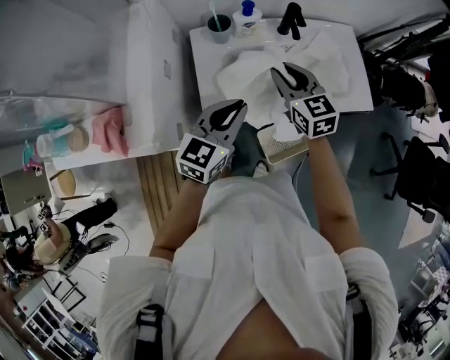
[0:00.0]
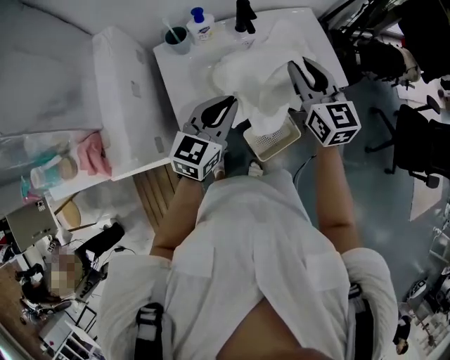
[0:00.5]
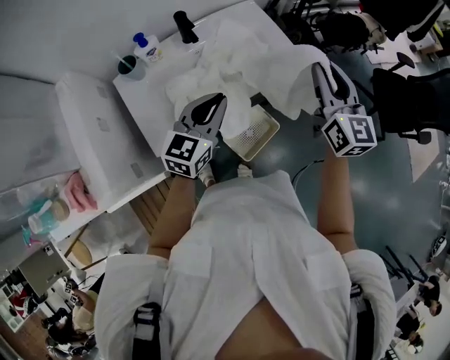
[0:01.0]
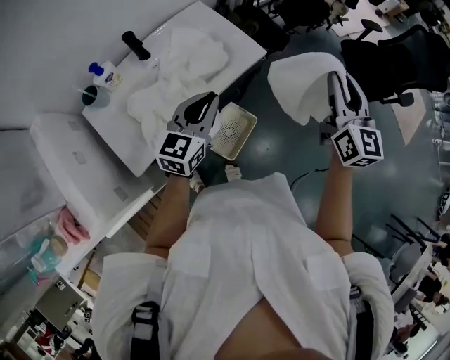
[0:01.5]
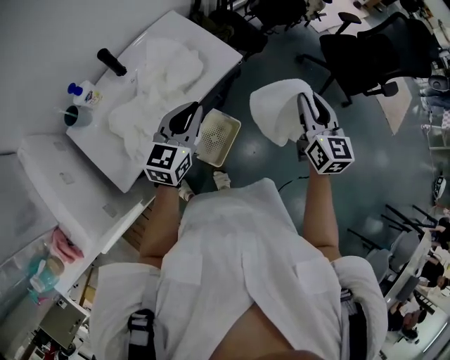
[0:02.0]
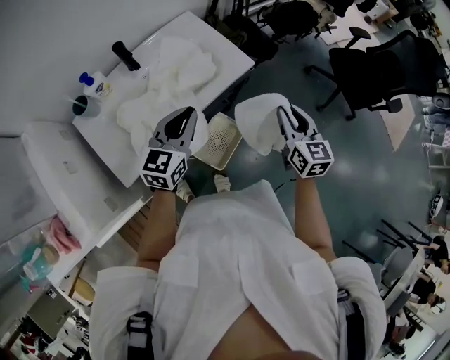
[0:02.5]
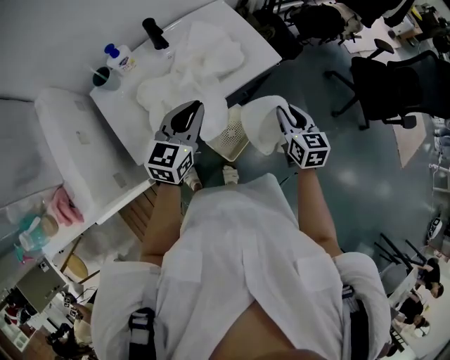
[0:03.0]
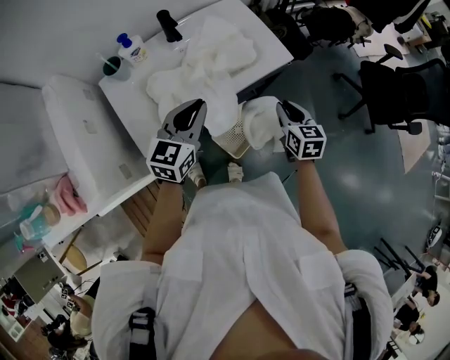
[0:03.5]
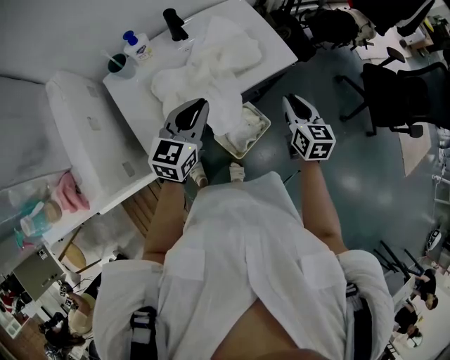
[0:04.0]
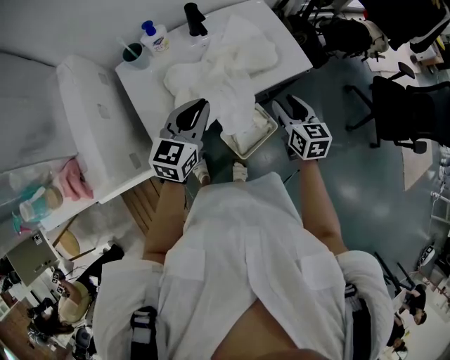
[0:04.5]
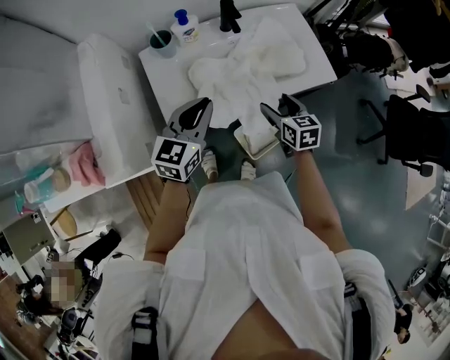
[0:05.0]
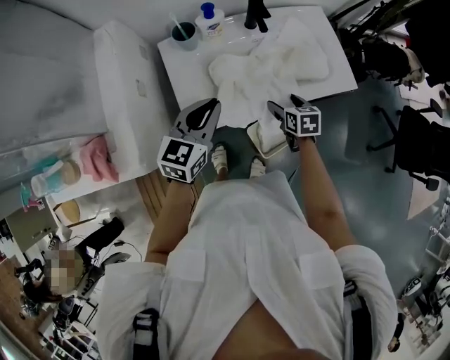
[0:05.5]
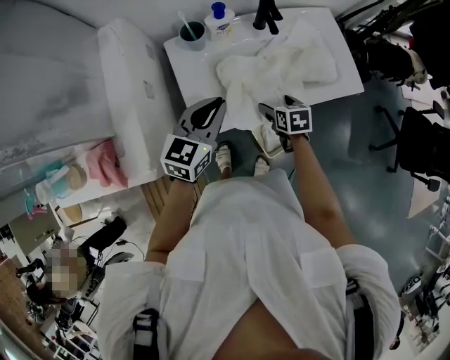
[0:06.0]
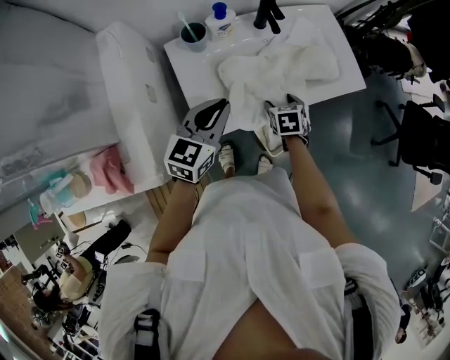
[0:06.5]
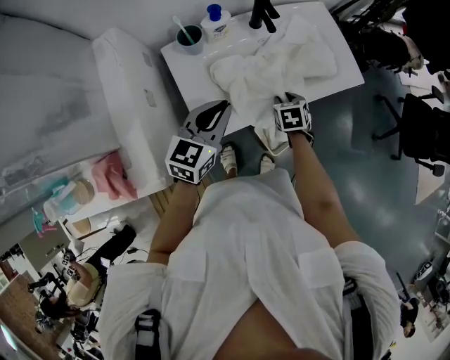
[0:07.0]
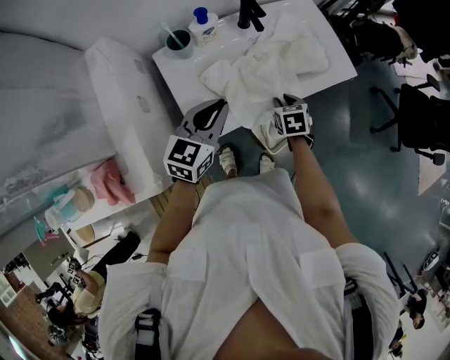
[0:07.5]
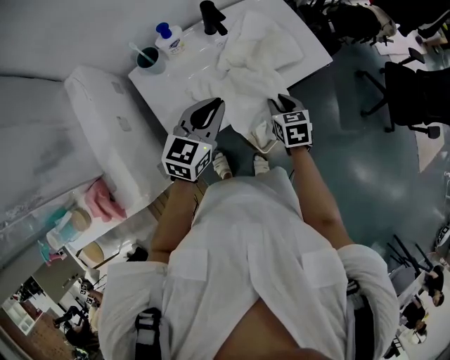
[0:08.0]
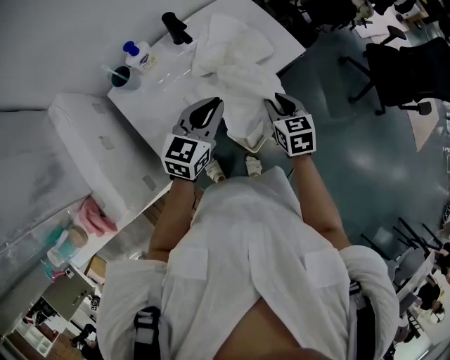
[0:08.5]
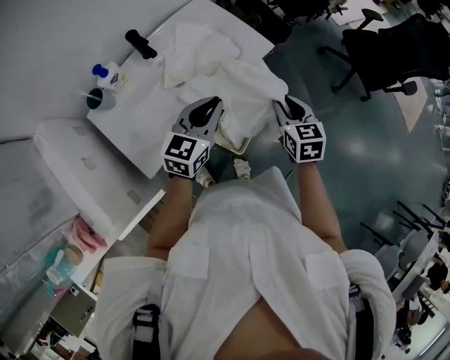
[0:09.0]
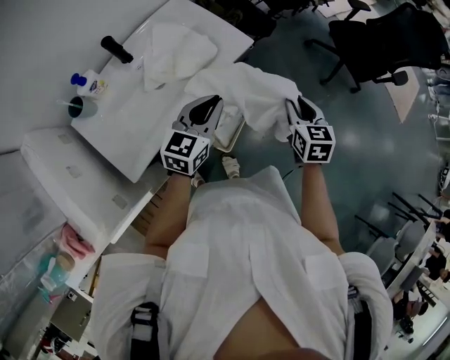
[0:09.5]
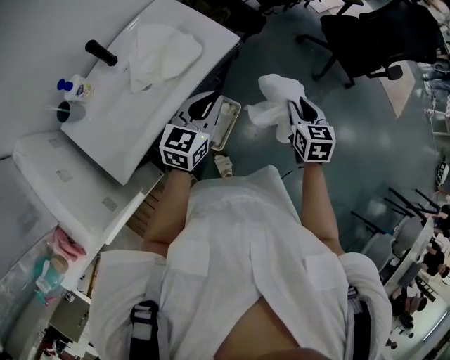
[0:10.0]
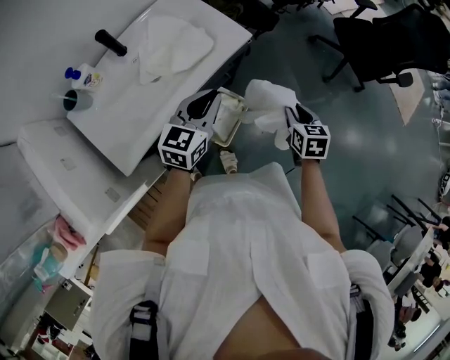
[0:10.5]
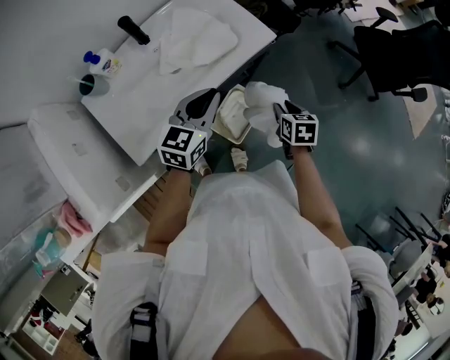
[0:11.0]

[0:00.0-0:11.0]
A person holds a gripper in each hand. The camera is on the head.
0:00.0 to 0:02.0: The right gripper shifts by approximately 50 cm, and turns by about 60 degrees; the left gripper shifts by about 30 cm, and turns by roughly 30 degrees.
0:02.0 to 0:03.5: The right gripper is displaced to the left and downward by roughly 20 cm, and swivels roughly 30 degrees. Meanwhile the left gripper heads to the left and backward, covering approximately 15 cm.
0:03.5 to 0:05.5: The right gripper travels to the left and downward by approximately 25 cm, turns by approximately 20 degrees, and opens its fingers. The left gripper is displaced to the left by some 15 cm.
0:05.5 to 0:07.5: The right gripper closes.
0:07.5 to 0:09.0: The right gripper shifts some 30 cm to the right and upward, and swivels some 30 degrees. The left gripper shifts approximately 25 cm to the right.
0:09.0 to 0:11.0: The left gripper moves roughly 10 cm to the right and comes back; the right gripper heads downward, covering roughly 10 cm, reaches some 15 cm to the right, then returns, and swivels roughly 20 degrees.

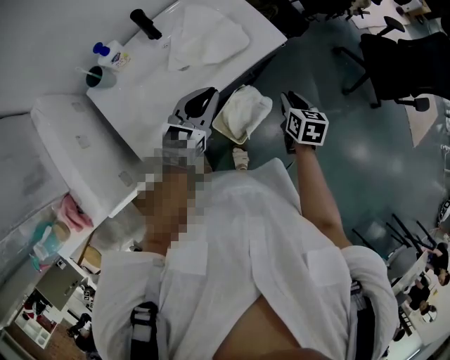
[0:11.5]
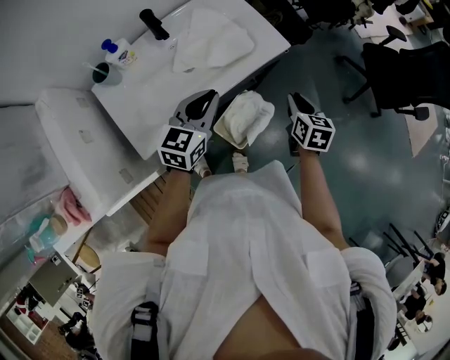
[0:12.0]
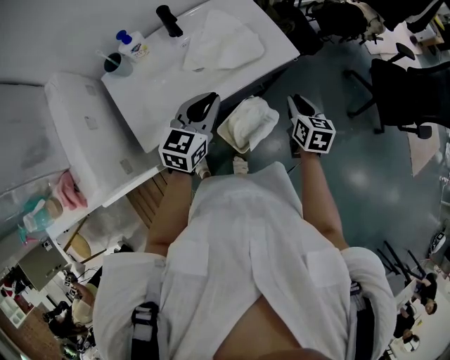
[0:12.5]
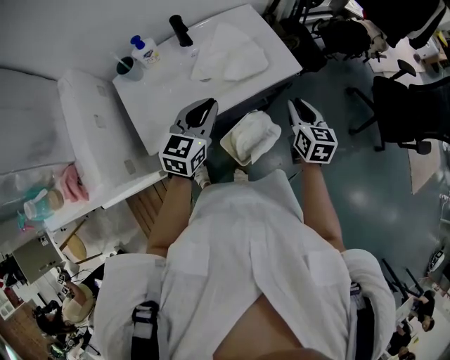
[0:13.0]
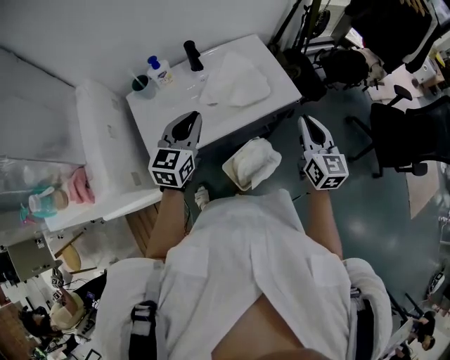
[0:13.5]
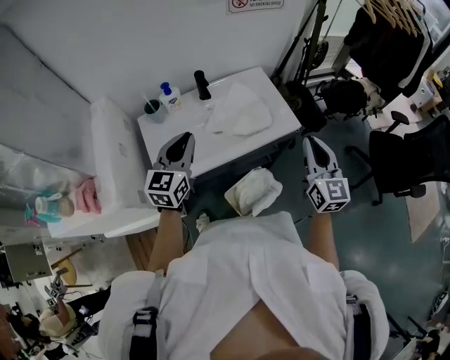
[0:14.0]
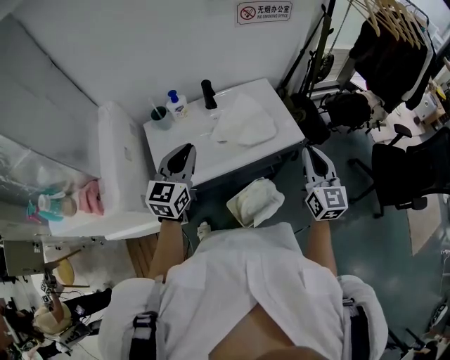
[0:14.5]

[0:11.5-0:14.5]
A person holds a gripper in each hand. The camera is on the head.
0:11.5 to 0:13.0: The left gripper shifts by about 5 cm. Meanwhile the right gripper moves upward, about 10 cm, and rotates approximately 20 degrees.
0:13.0 to 0:14.5: The right gripper heads upward, covering some 15 cm, and changes its angle by roughly 30 degrees, while the left gripper goes about 15 cm to the left and upward.

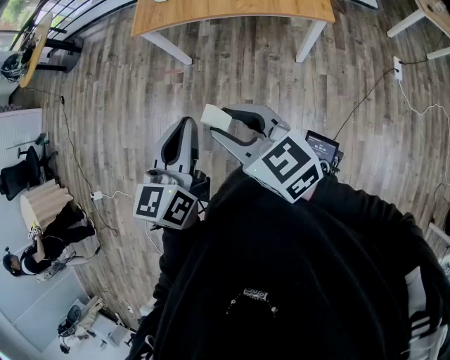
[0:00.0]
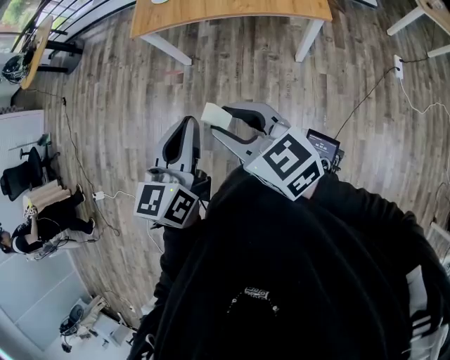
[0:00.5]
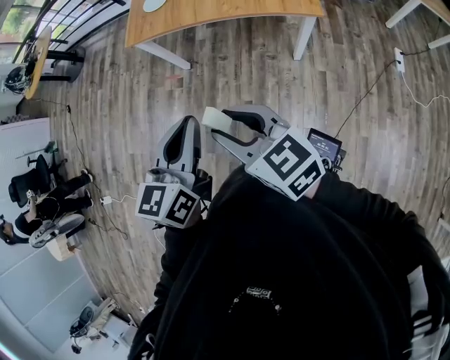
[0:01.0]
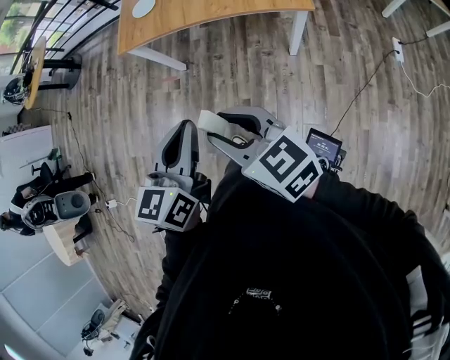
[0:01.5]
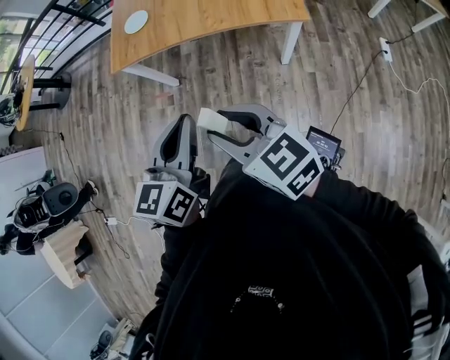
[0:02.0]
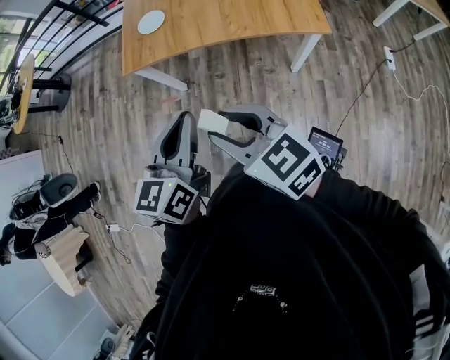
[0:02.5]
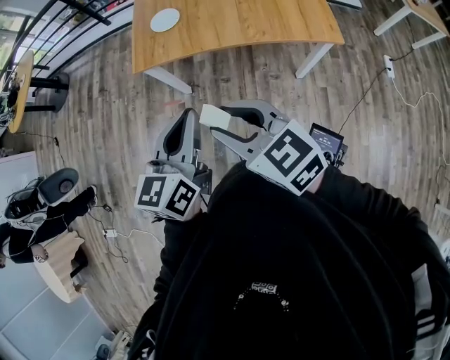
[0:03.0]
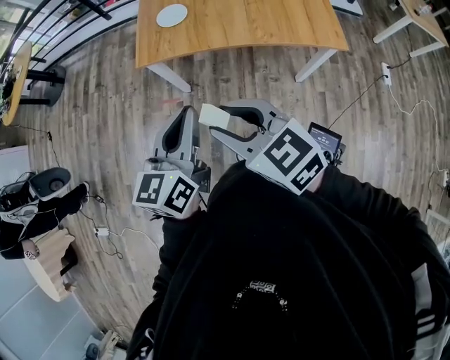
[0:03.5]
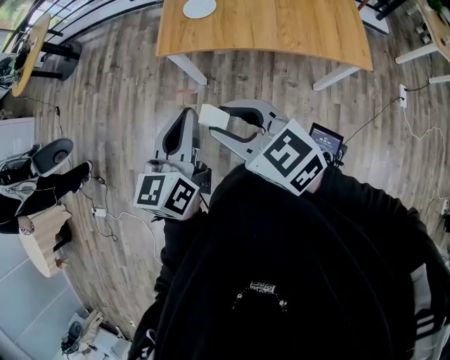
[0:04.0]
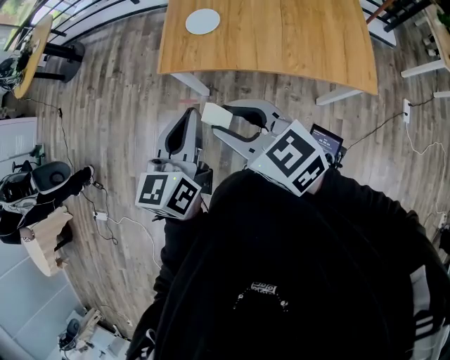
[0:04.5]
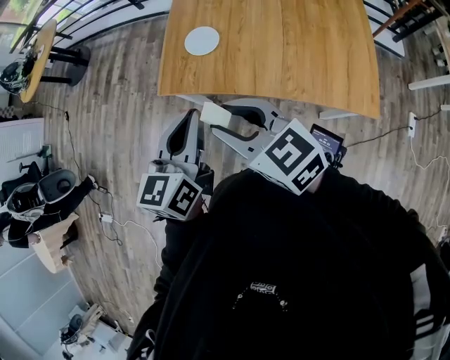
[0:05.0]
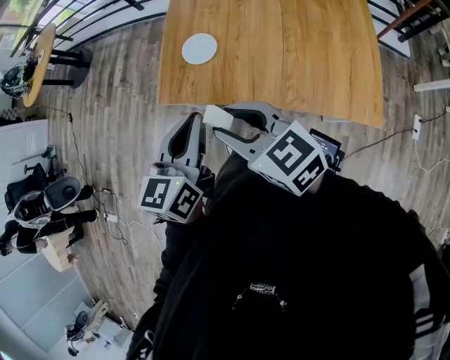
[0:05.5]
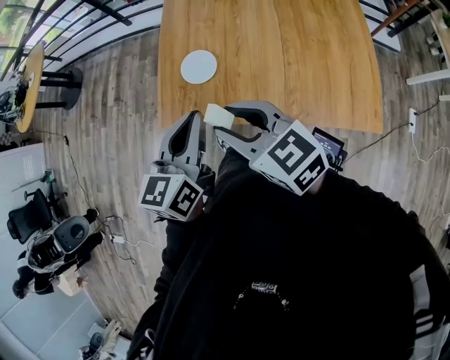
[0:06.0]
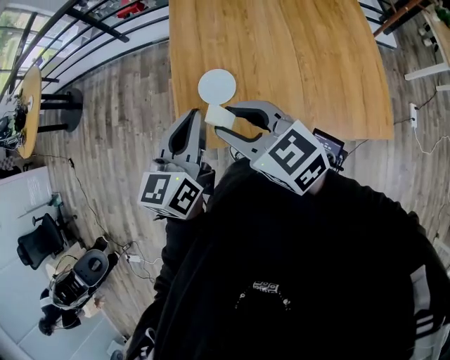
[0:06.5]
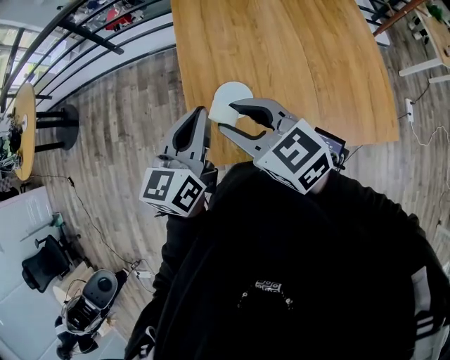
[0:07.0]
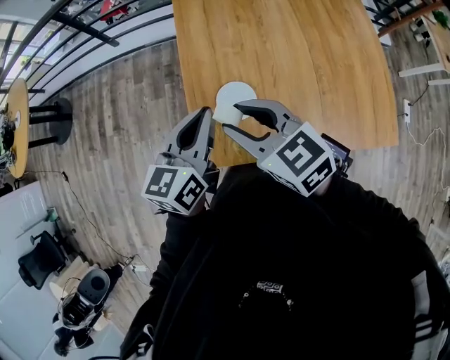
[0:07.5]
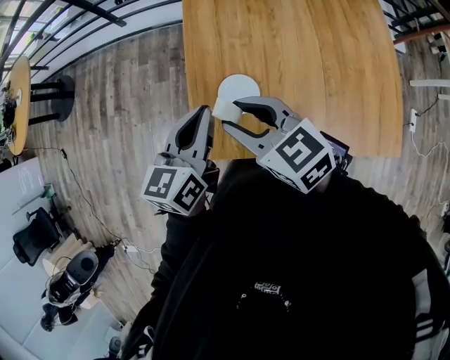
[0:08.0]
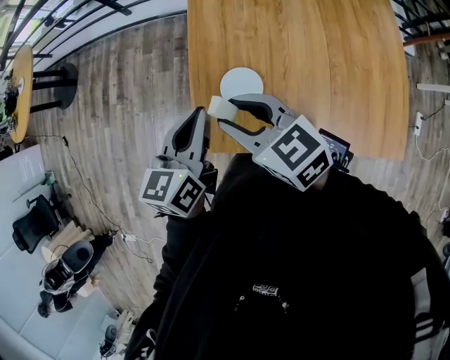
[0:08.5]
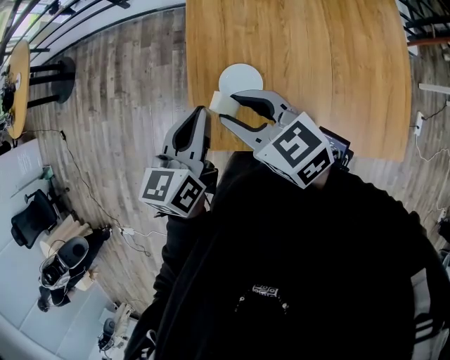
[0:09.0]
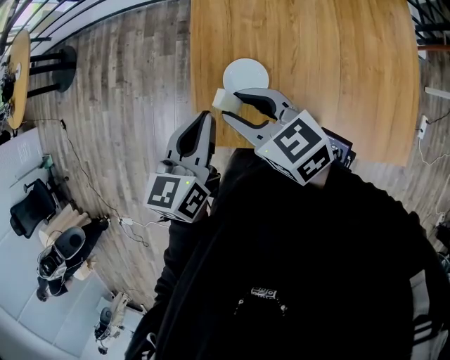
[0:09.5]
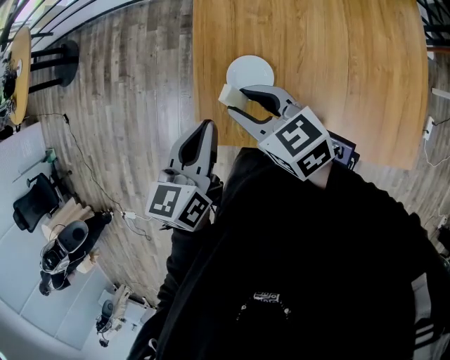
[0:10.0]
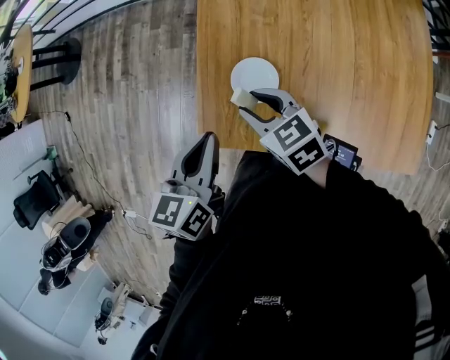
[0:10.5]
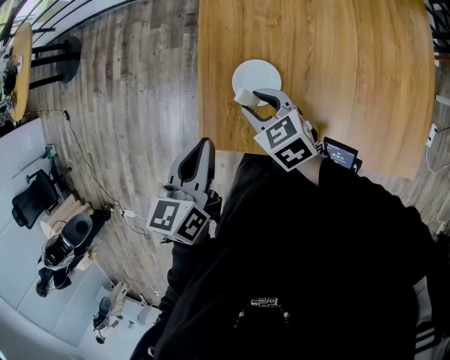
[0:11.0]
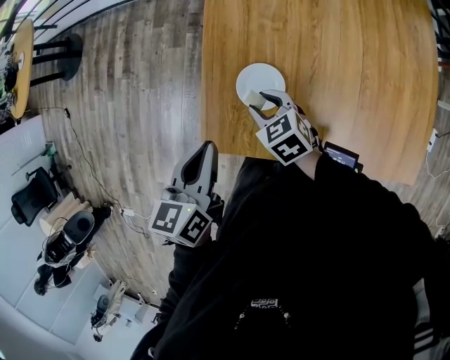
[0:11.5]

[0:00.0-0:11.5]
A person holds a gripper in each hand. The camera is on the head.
0:00.0 to 0:02.0: The two grippers go some 10 cm to the right and forward.
0:02.0 to 0:04.0: Both grippers travel together to the left and forward, approximately 25 cm.
0:04.0 to 0:06.0: Both grippers move forward and to the right, roughly 30 cm.
0:06.0 to 0:07.5: Both grippers move forward and to the left, approximately 25 cm.
0:07.5 to 0:09.5: The left gripper moves some 5 cm. The right gripper heads downward, covering about 5 cm.
0:09.5 to 0:11.5: The left gripper changes place by approximately 5 cm, while the right gripper goes some 20 cm downward, and rotates roughly 20 degrees.

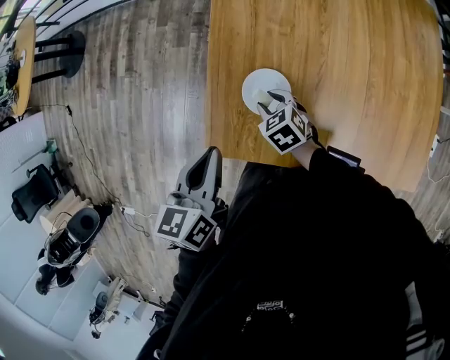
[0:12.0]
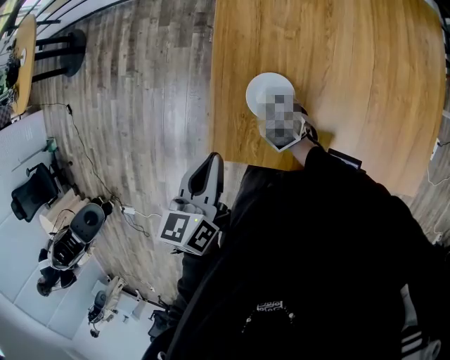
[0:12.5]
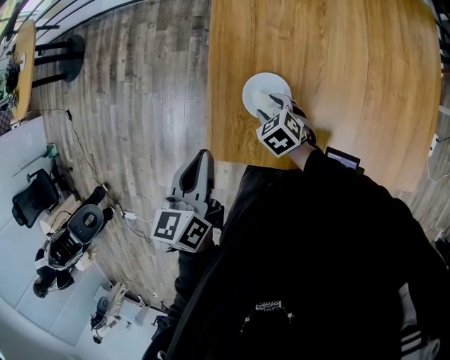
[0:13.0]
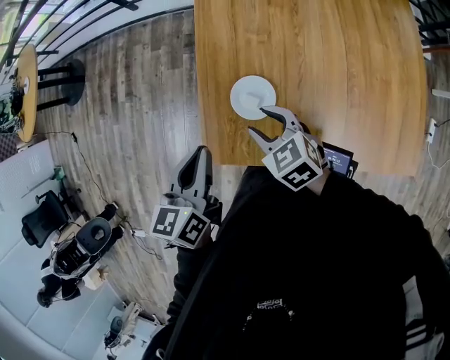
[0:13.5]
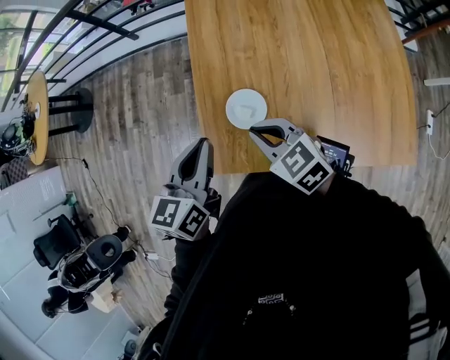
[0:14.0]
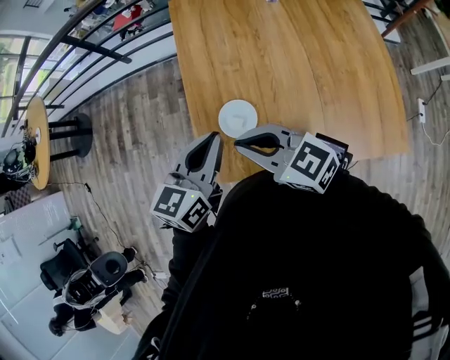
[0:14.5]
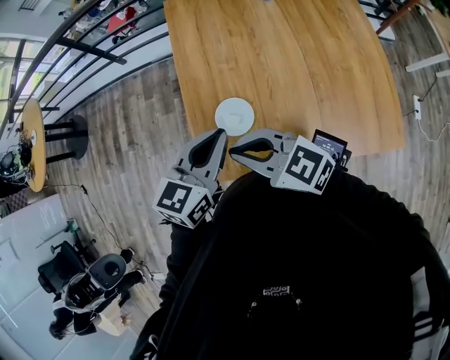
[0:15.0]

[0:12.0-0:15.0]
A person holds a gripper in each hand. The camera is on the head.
0:12.0 to 0:13.5: The right gripper moves upward, roughly 15 cm.
0:13.5 to 0:15.0: The right gripper is displaced upward and backward by roughly 15 cm, changes its angle by approximately 30 degrees, and closes; the left gripper goes about 15 cm to the right and upward, and rotates some 30 degrees.
